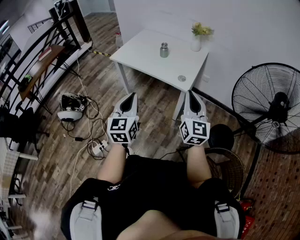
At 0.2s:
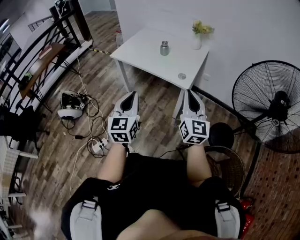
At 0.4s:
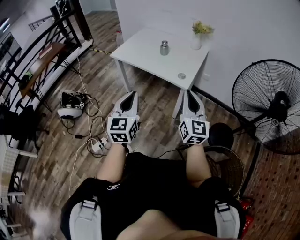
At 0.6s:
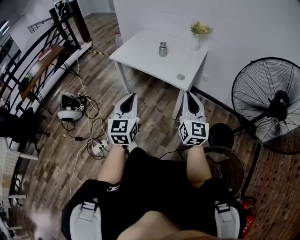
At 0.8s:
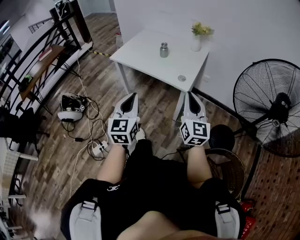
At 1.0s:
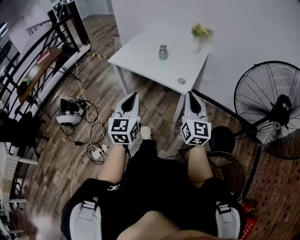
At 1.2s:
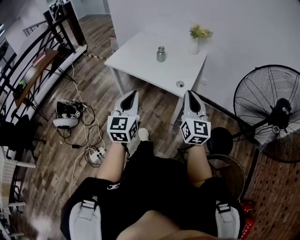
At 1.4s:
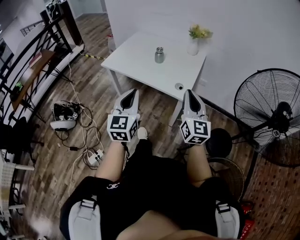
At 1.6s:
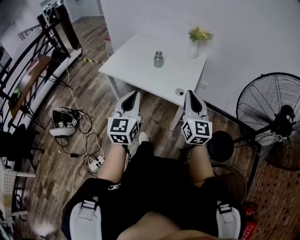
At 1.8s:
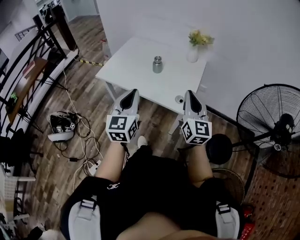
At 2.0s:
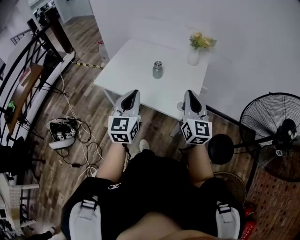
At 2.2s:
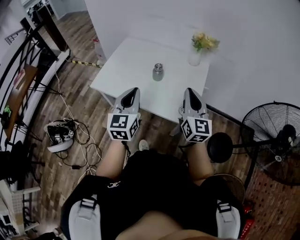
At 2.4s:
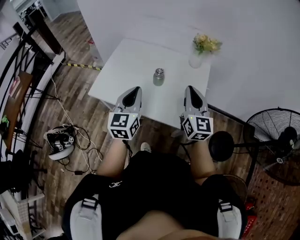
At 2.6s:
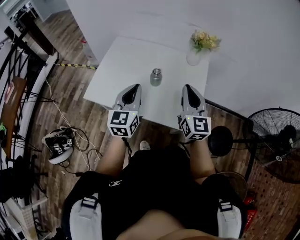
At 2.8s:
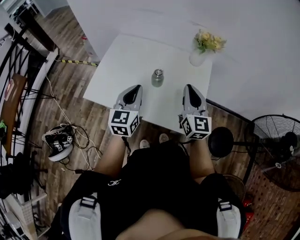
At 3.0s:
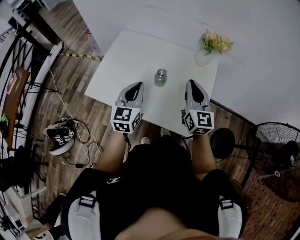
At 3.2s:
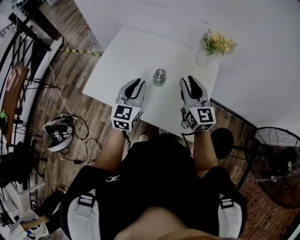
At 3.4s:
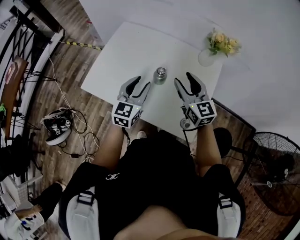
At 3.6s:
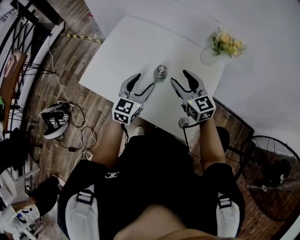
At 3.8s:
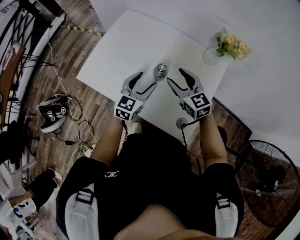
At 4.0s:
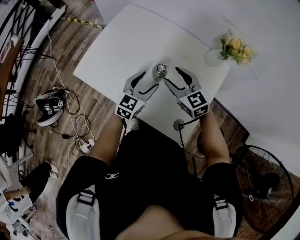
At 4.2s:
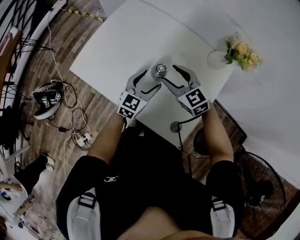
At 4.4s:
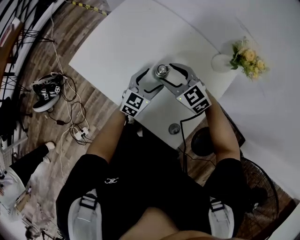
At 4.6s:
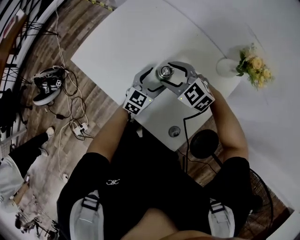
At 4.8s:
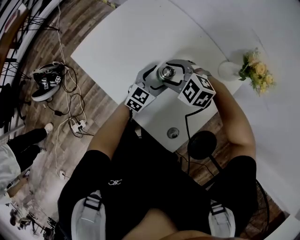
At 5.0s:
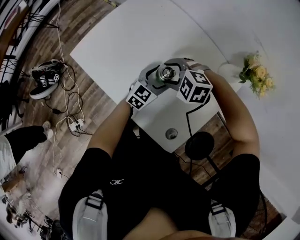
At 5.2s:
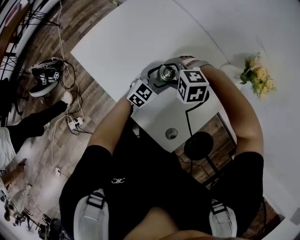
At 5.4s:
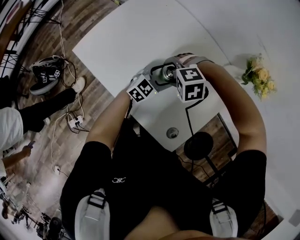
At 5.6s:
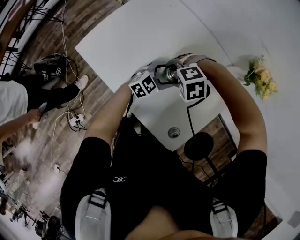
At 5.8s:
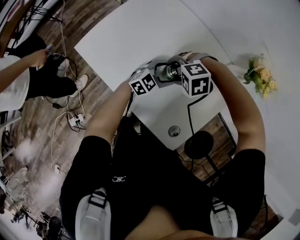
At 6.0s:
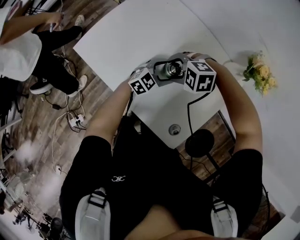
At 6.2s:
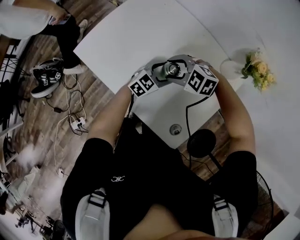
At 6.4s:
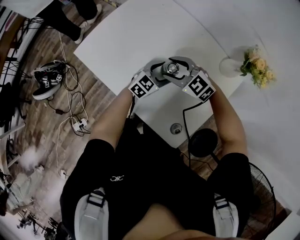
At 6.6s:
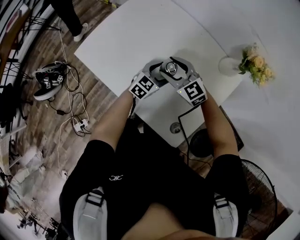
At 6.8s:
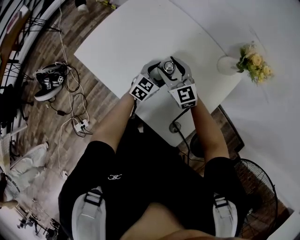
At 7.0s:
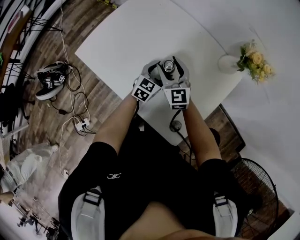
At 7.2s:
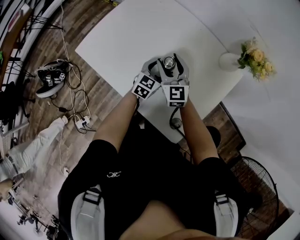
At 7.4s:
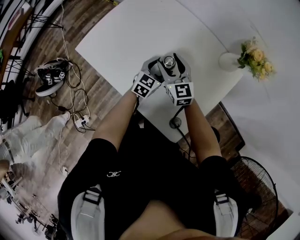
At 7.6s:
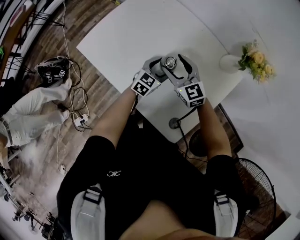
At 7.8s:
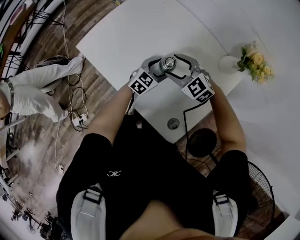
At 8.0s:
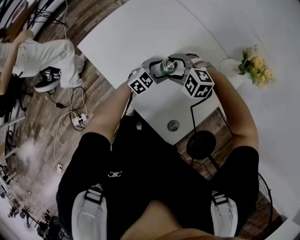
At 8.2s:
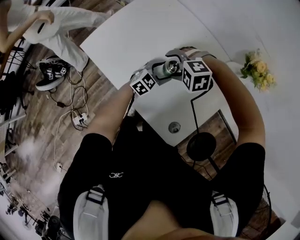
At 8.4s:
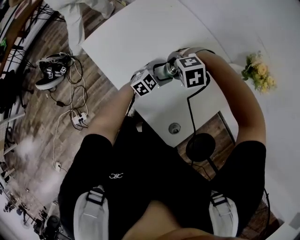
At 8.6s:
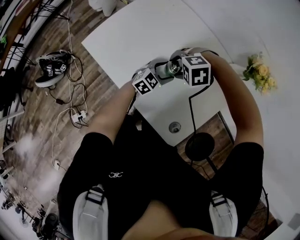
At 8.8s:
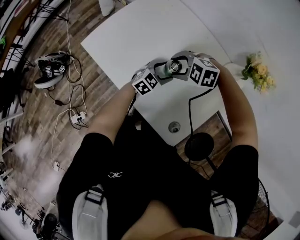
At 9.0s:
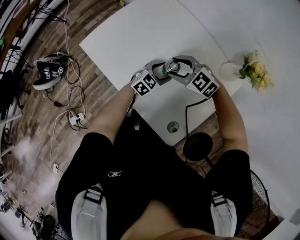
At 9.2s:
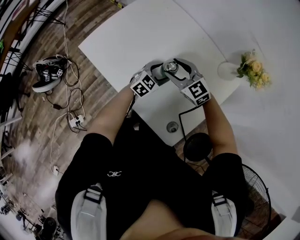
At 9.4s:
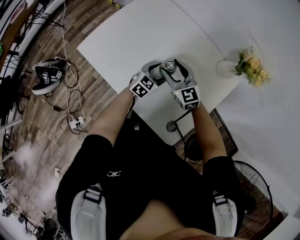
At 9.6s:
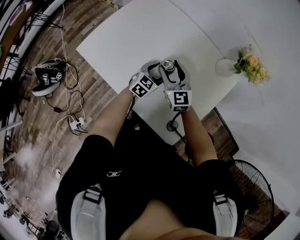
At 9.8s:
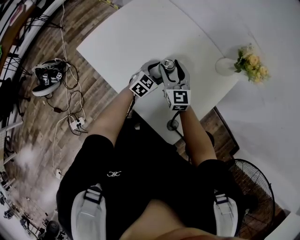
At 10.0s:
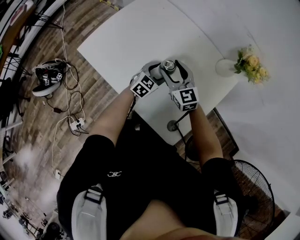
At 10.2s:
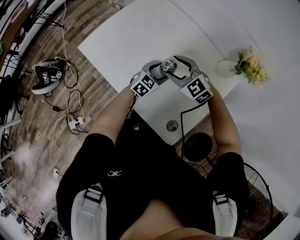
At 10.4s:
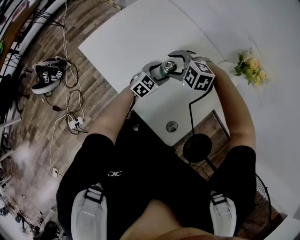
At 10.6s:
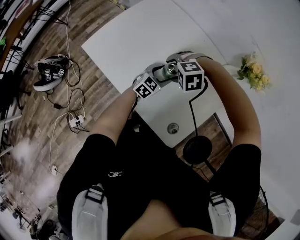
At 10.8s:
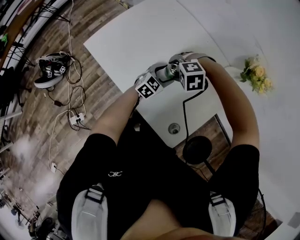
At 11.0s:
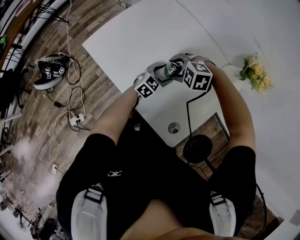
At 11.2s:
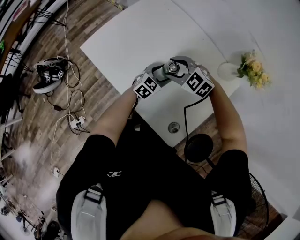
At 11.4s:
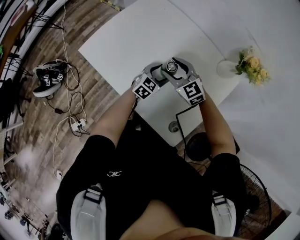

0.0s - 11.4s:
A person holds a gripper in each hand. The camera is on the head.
0.0s - 1.4s: Both grippers travel together forward, roughly 10 cm.
1.4s - 2.8s: The grippers both shift forward by approximately 35 cm.
2.8s - 4.2s: The right gripper shifts some 25 cm downward, forward and to the left, swivels roughly 60 degrees, and opens its fingers. Meanwhile the left gripper moves downward, forward and to the right, roughly 25 cm, and opens.
4.2s - 5.6s: The grippers both shift downward by some 10 cm. The right gripper angles its fingers downward, by some 50 degrees.
5.6s - 7.2s: The right gripper ends up roughly 5 cm from where it was, and points its fingers some 70 degrees further upward. Meanwhile the left gripper rotates about 20 degrees.
7.2s - 8.6s: The right gripper moves about 5 cm, and tilts its fingers roughly 60 degrees downward.
8.6s - 10.0s: The right gripper tips its fingers upward by approximately 60 degrees.

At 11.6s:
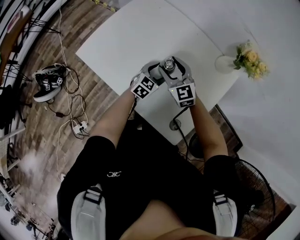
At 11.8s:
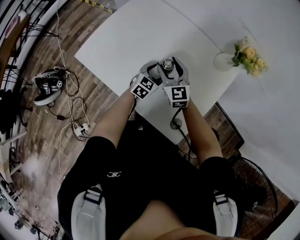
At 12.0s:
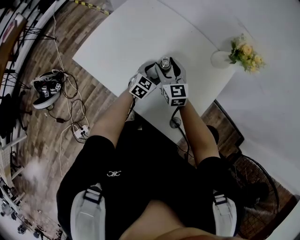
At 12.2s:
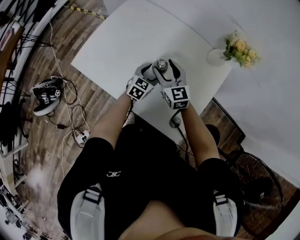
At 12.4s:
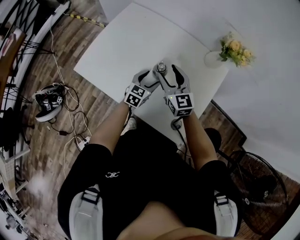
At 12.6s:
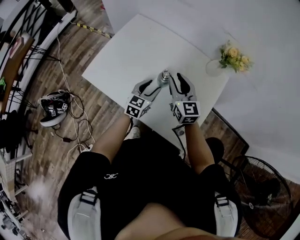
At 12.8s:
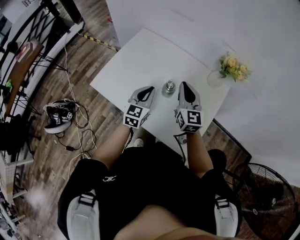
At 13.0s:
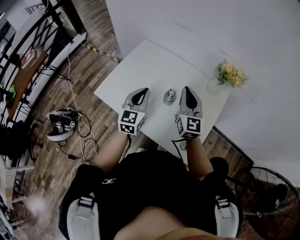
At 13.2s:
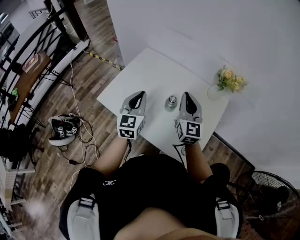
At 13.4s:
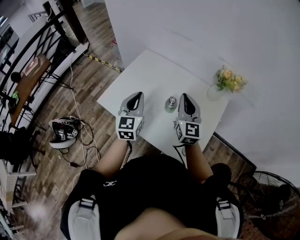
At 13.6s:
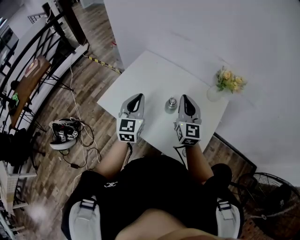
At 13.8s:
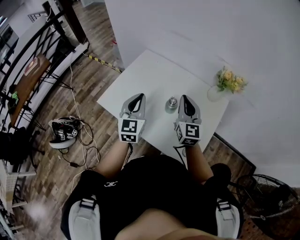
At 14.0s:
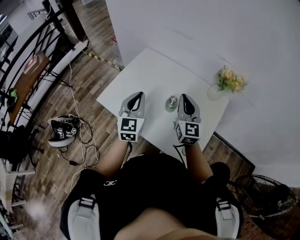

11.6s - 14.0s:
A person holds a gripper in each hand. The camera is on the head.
11.6s - 12.8s: The left gripper goes approximately 20 cm upward and to the left, changes its angle by approximately 20 degrees, and closes. Meanwhile the right gripper travels upward and to the right by some 15 cm, rotates some 30 degrees, and closes.
12.8s - 14.0s: The right gripper shifts by some 5 cm. The left gripper is displaced upward and to the left by approximately 15 cm.

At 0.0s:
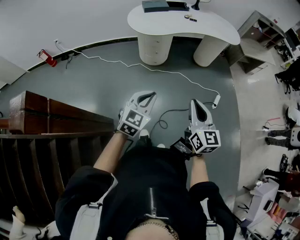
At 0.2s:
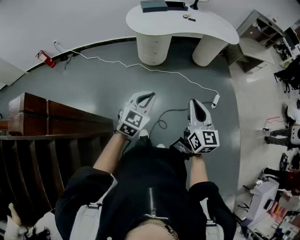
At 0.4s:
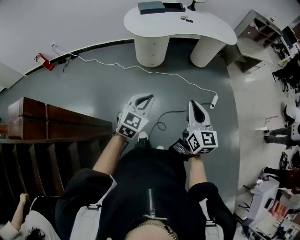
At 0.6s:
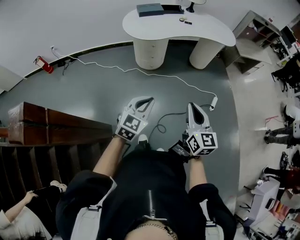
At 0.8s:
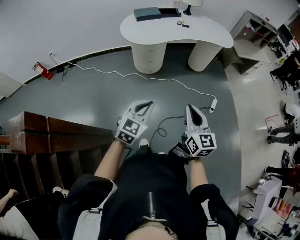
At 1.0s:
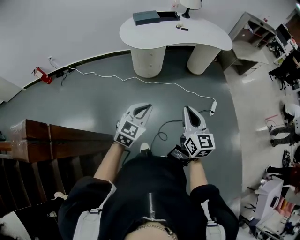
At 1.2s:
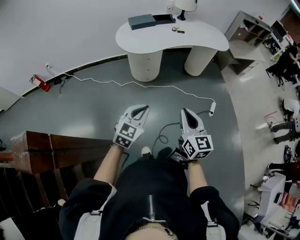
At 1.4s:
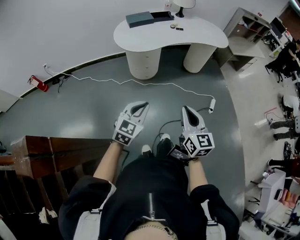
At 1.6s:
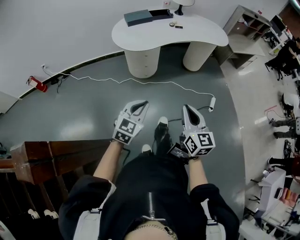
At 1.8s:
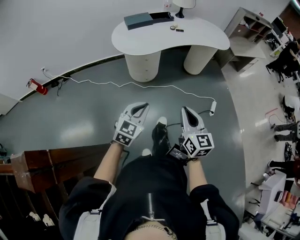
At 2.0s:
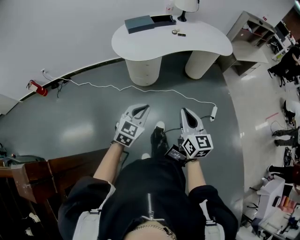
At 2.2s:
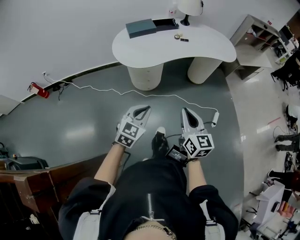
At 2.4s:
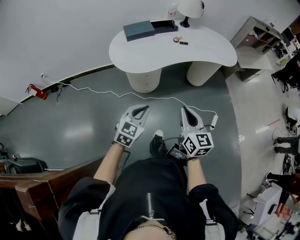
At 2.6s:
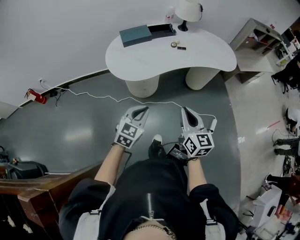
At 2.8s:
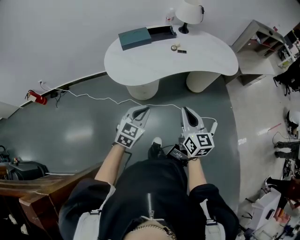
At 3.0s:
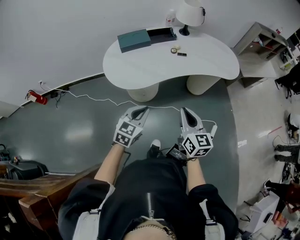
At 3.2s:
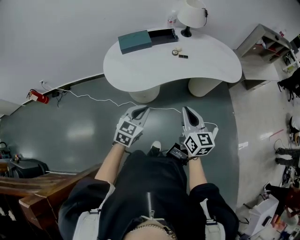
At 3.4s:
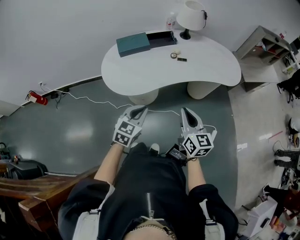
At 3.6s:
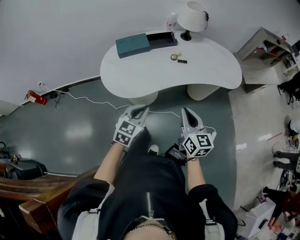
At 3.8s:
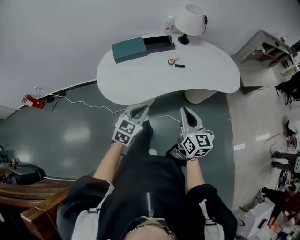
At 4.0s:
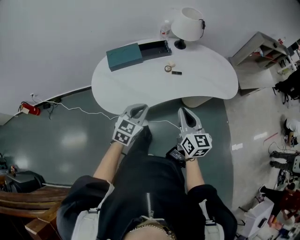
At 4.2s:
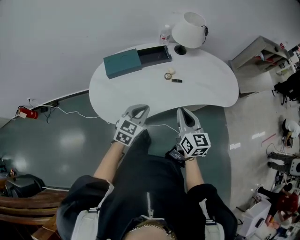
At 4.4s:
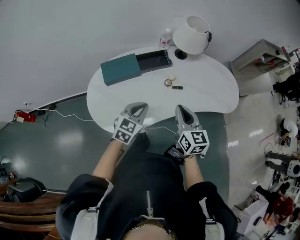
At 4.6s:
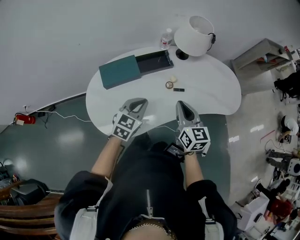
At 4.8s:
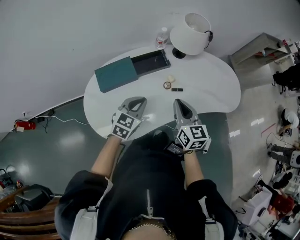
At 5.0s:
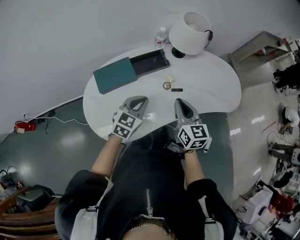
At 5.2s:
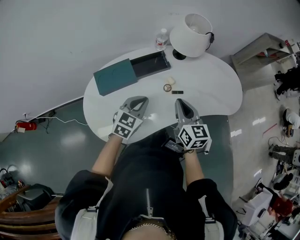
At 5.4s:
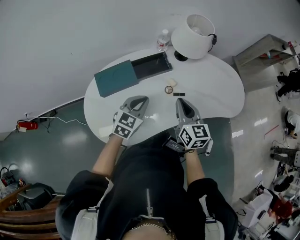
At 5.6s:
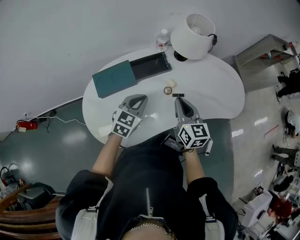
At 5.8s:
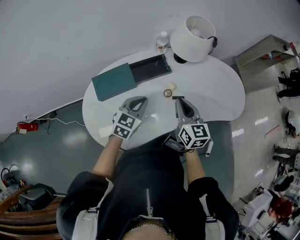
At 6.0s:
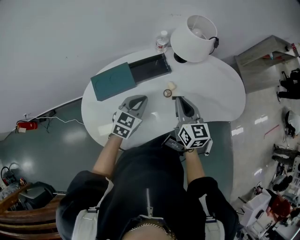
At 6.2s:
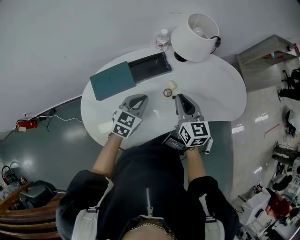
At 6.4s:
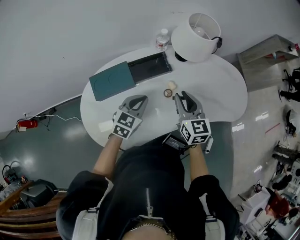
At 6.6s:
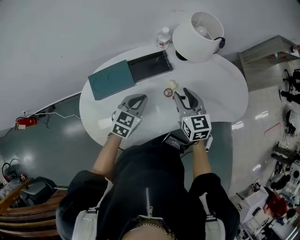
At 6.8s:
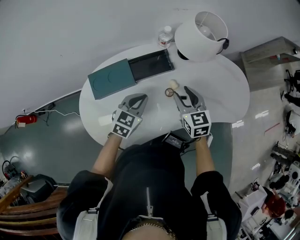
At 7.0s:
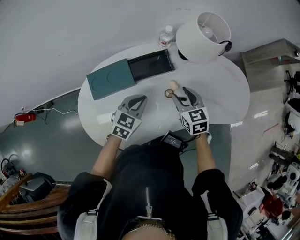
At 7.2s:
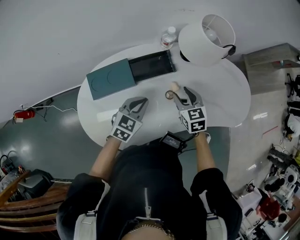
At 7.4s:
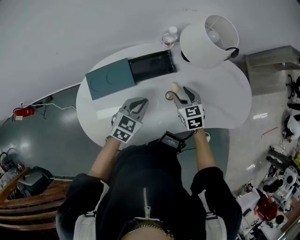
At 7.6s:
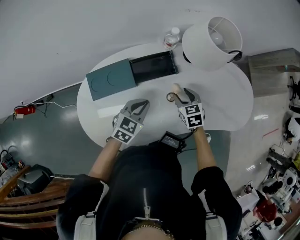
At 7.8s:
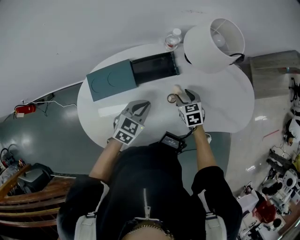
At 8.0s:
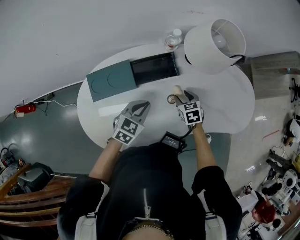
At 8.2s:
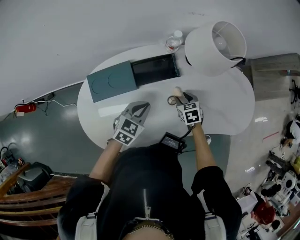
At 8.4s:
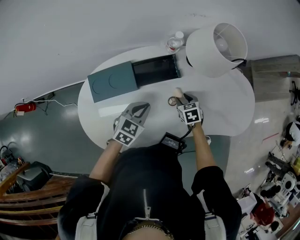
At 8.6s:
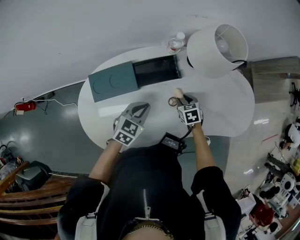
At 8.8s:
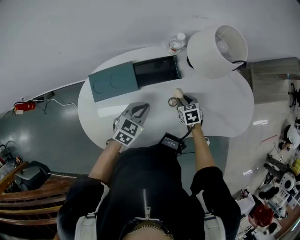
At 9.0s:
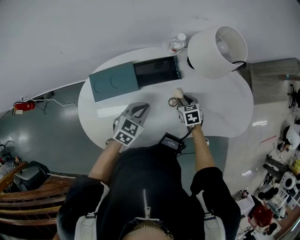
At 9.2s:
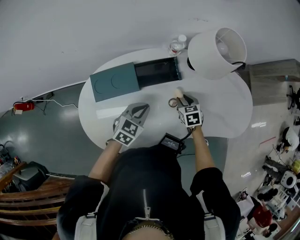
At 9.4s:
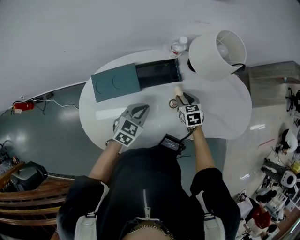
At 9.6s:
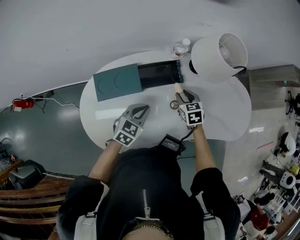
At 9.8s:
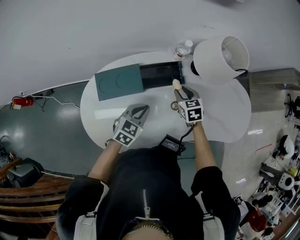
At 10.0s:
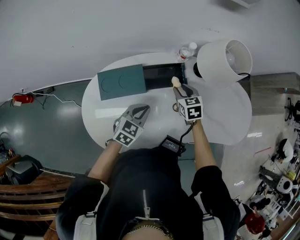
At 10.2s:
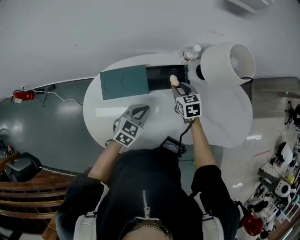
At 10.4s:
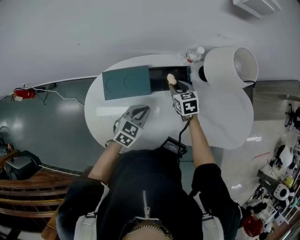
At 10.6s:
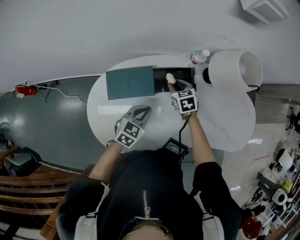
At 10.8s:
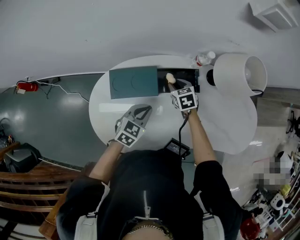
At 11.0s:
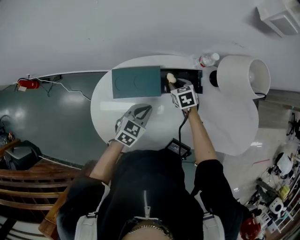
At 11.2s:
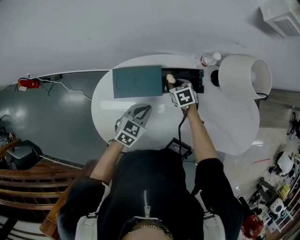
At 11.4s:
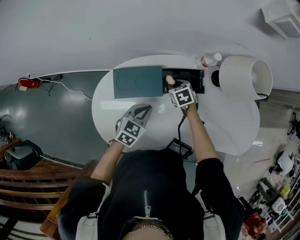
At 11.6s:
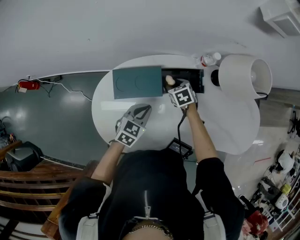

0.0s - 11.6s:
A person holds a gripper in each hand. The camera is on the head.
0.0s - 1.4s: The grippers both shift forward by about 5 cm.
1.4s - 2.8s: Both grippers travel together forward, about 30 cm.
2.8s - 4.4s: The two grippers go roughly 35 cm forward.
4.4s - 5.8s: The grippers both shift forward by about 15 cm.
5.8s - 7.2s: The right gripper travels downward and forward by roughly 15 cm, changes its angle by roughly 30 degrees, and opens, while the left gripper changes place by about 5 cm.
7.2s - 8.8s: The right gripper goes roughly 15 cm downward, and turns by roughly 20 degrees.
8.8s - 10.2s: The right gripper shifts approximately 15 cm to the left, upward and forward.
10.2s - 11.6s: The left gripper is displaced to the left by roughly 5 cm. The right gripper heads to the left and downward, covering about 10 cm.
